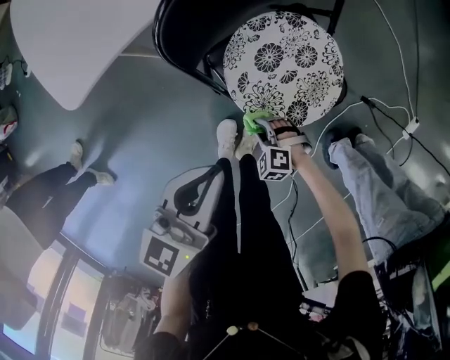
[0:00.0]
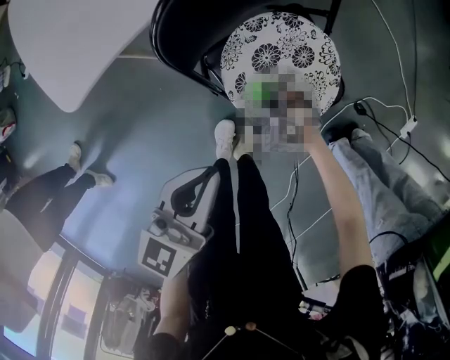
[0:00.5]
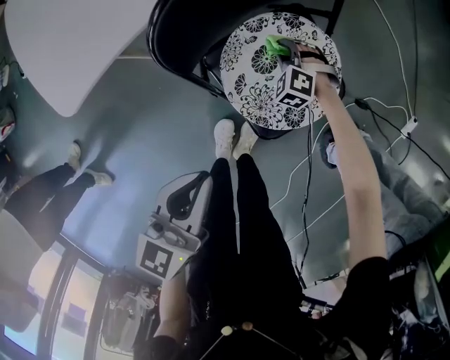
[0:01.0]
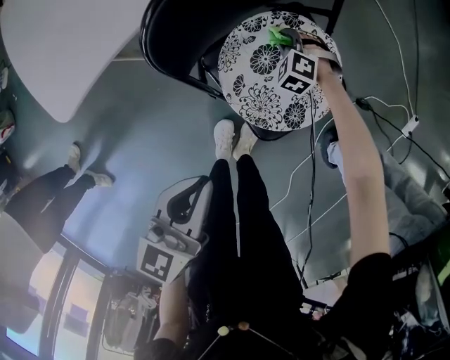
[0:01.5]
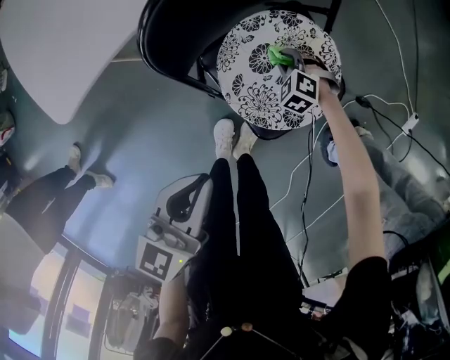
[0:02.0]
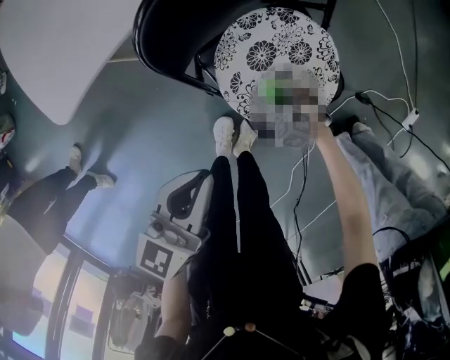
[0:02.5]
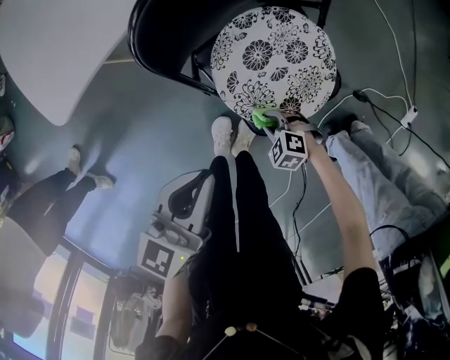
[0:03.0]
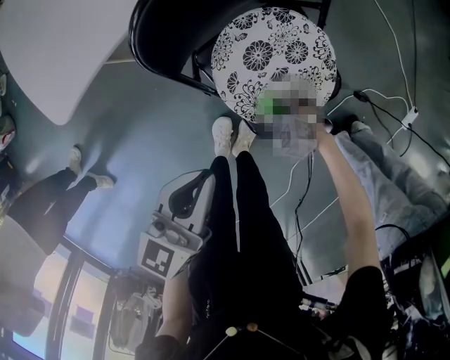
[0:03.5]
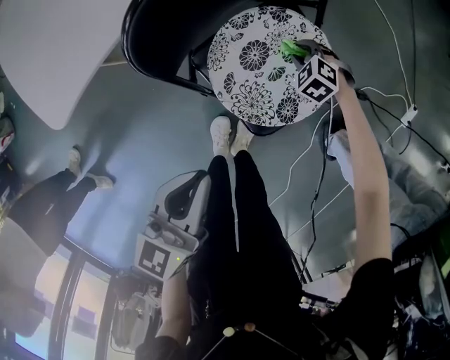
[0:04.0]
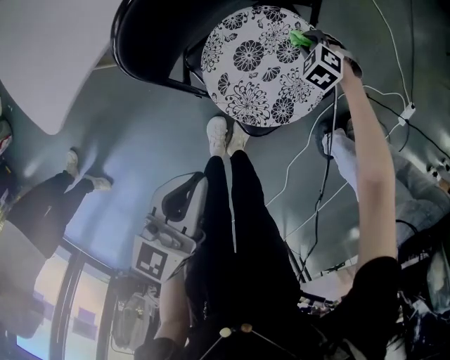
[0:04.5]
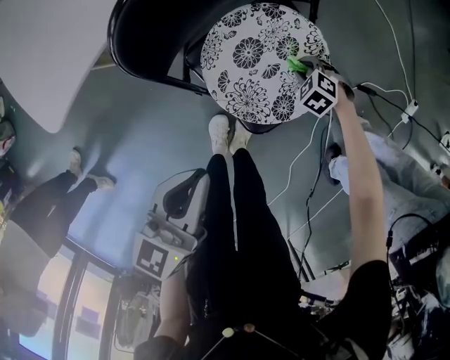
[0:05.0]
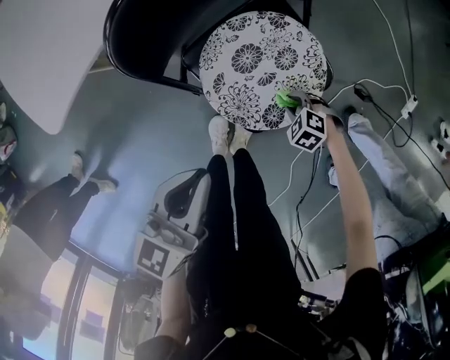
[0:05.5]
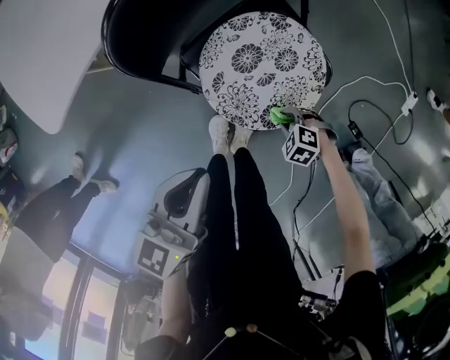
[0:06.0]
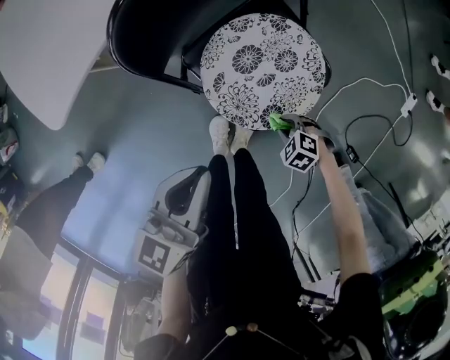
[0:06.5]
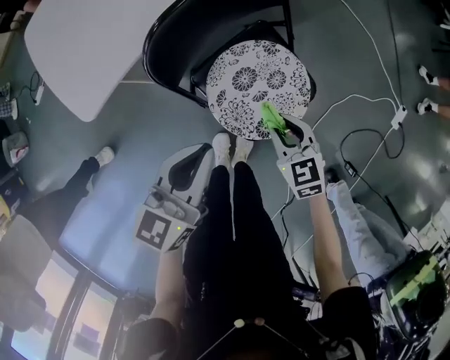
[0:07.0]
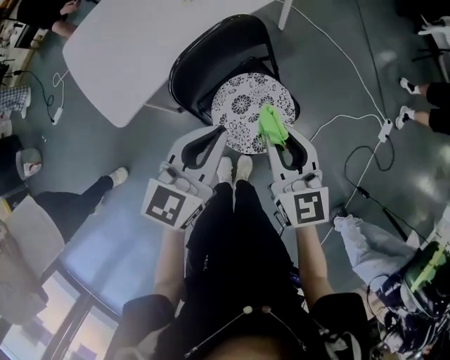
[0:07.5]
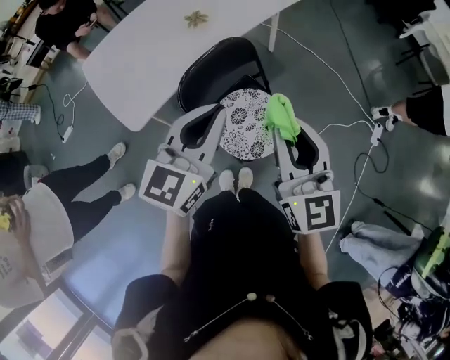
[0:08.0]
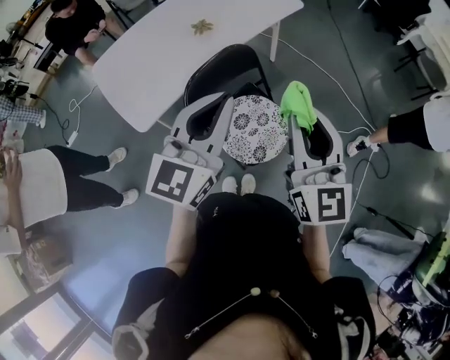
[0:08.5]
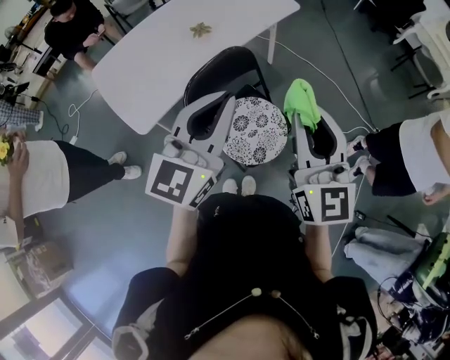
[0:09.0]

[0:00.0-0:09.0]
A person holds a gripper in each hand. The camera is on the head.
0:00.0 to 0:02.0: The right gripper heads forward, covering some 25 cm.
0:04.5 to 0:07.0: The right gripper is displaced upward by some 25 cm, and angles its fingers upward, by roughly 30 degrees. Meanwhile the left gripper moves upward, roughly 10 cm.
0:07.0 to 0:09.0: Both grippers move upward, some 40 cm. The right gripper tips its fingers upward by some 40 degrees; the left gripper rotates about 30 degrees.

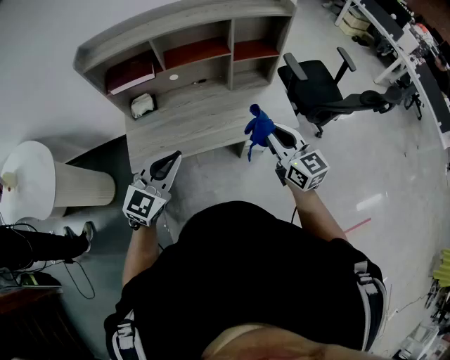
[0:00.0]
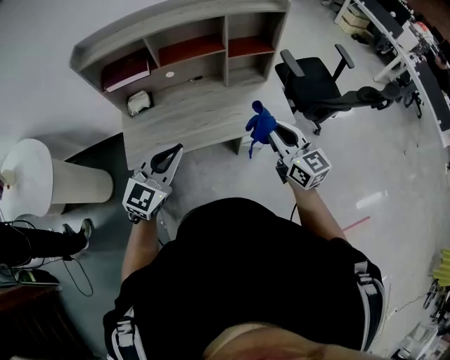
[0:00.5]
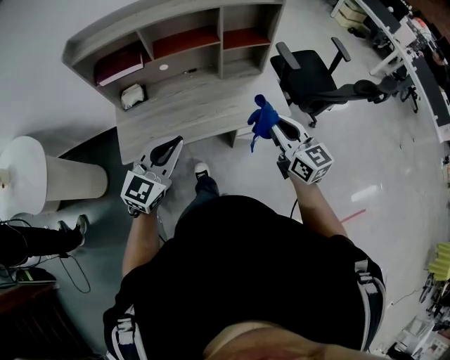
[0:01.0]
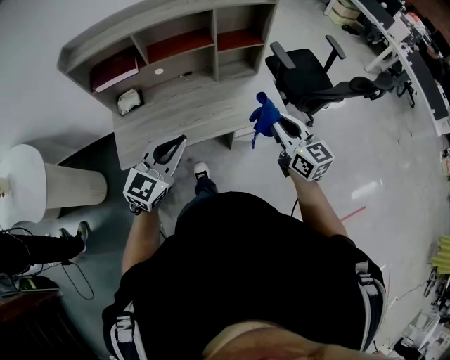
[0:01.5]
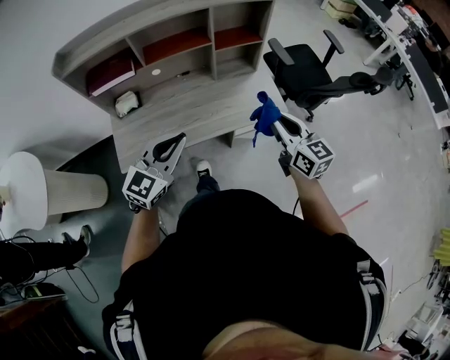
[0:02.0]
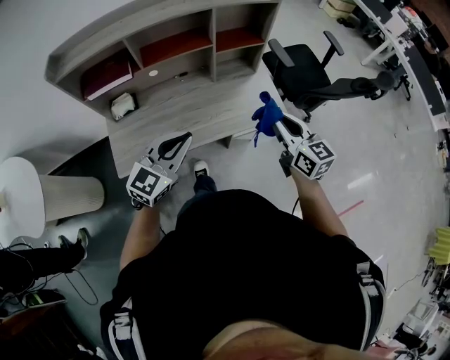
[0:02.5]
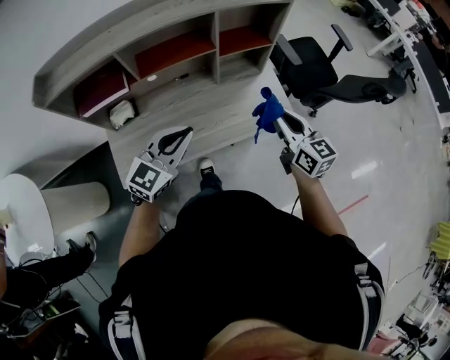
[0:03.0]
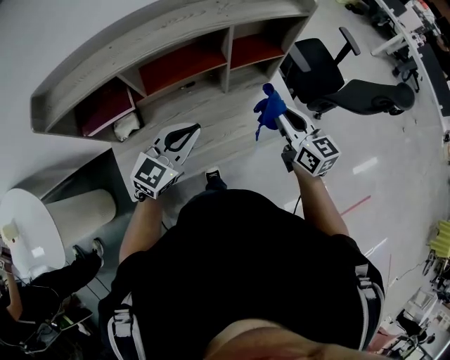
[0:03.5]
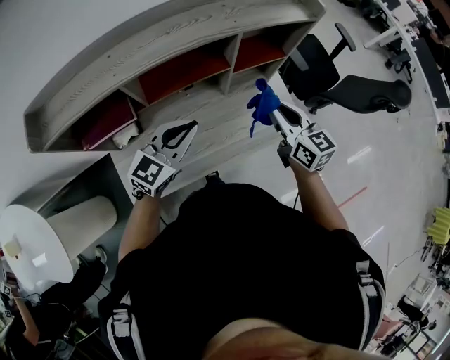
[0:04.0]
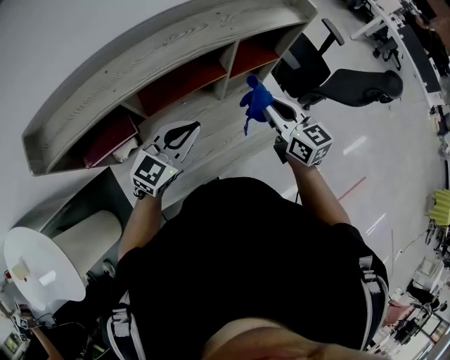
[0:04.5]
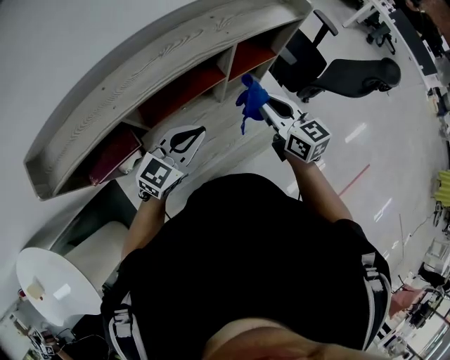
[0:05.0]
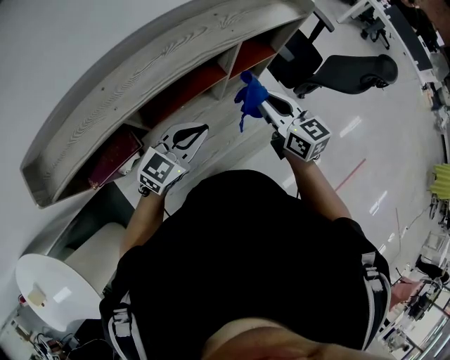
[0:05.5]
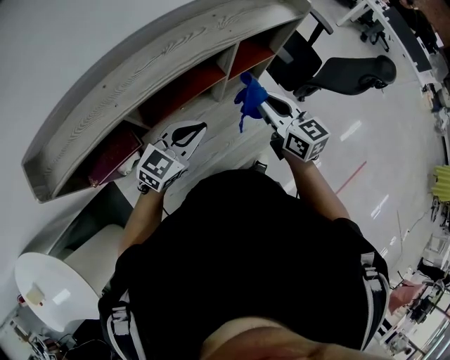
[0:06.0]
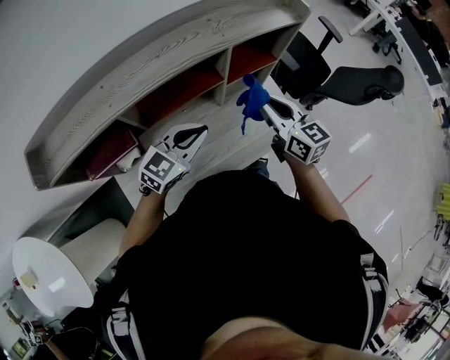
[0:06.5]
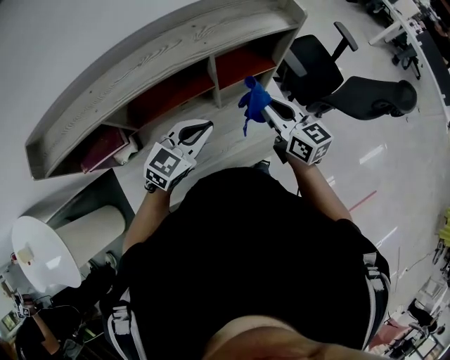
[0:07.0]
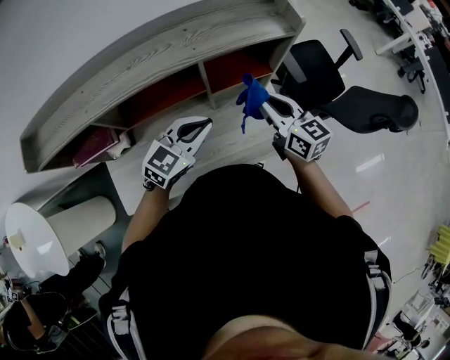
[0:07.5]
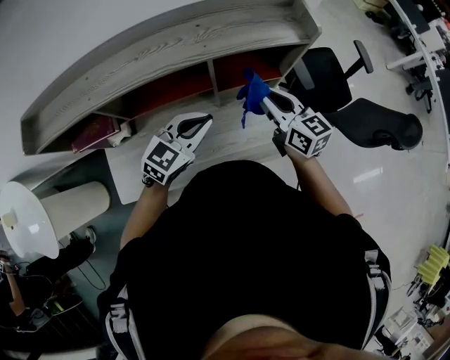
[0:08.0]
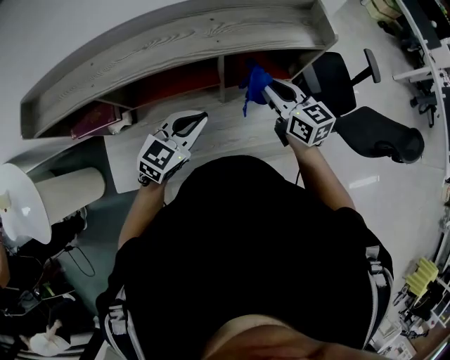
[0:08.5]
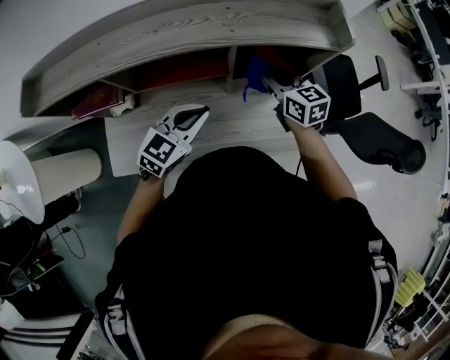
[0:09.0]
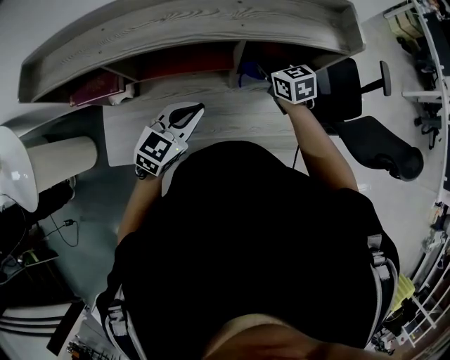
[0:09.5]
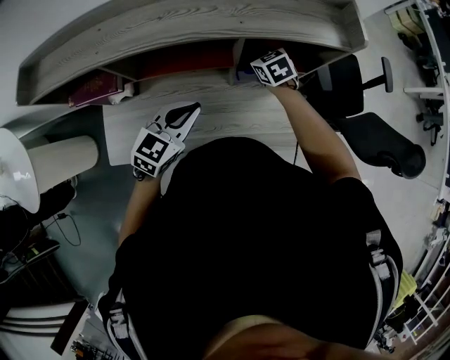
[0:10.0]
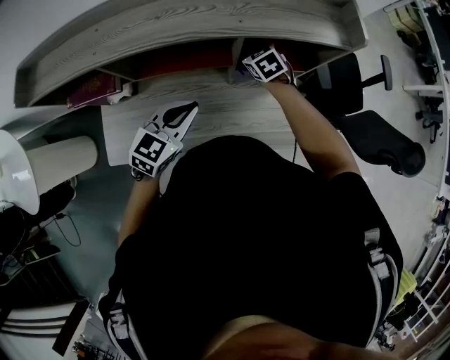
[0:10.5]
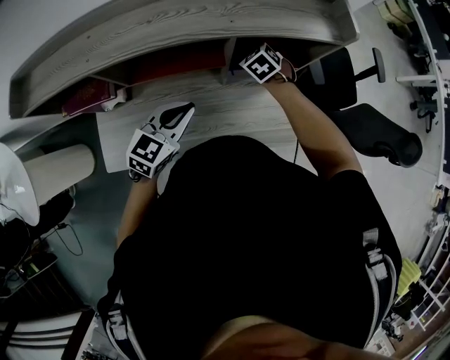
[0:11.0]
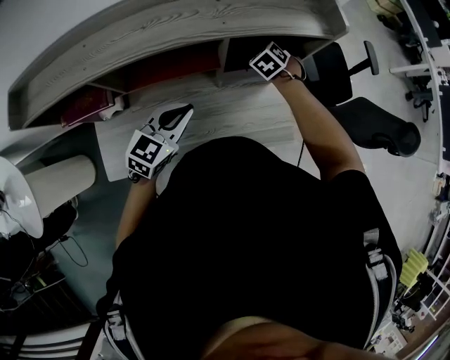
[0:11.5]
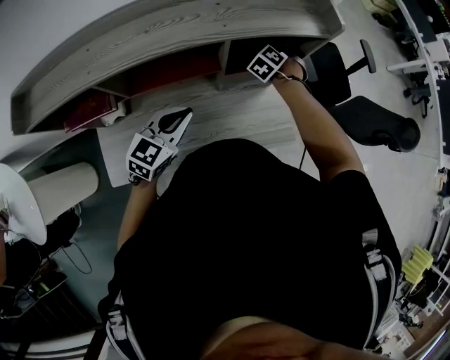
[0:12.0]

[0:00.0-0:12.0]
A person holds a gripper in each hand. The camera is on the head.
0:00.0 to 0:02.0: The two grippers go roughly 5 cm to the right.
0:02.0 to 0:04.0: The left gripper shifts some 25 cm forward, while the right gripper travels forward and to the left by roughly 25 cm.
0:04.0 to 0:06.0: The right gripper travels to the left by approximately 5 cm.
0:06.0 to 0:08.0: The left gripper travels to the right and forward by approximately 15 cm, and swivels roughly 20 degrees; the right gripper moves forward and to the right, approximately 15 cm, and turns by roughly 20 degrees.
0:08.0 to 0:10.0: The left gripper moves to the left, roughly 5 cm. Meanwhile the right gripper goes some 20 cm downward, forward and to the left, and tilts its fingers some 40 degrees downward.
0:10.0 to 0:12.0: The right gripper moves approximately 10 cm, and turns by roughly 50 degrees.

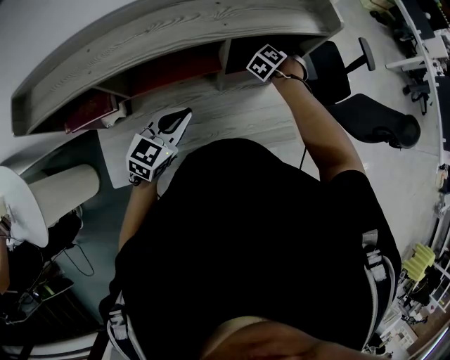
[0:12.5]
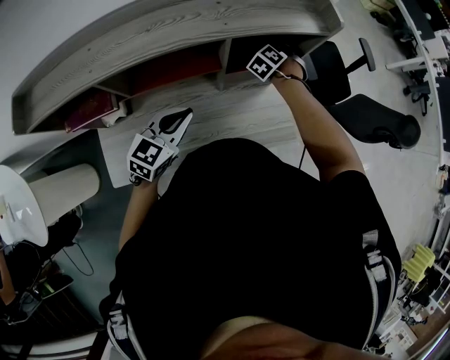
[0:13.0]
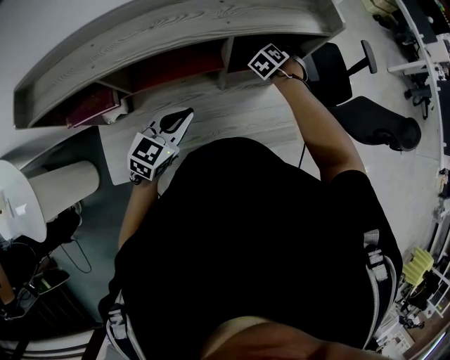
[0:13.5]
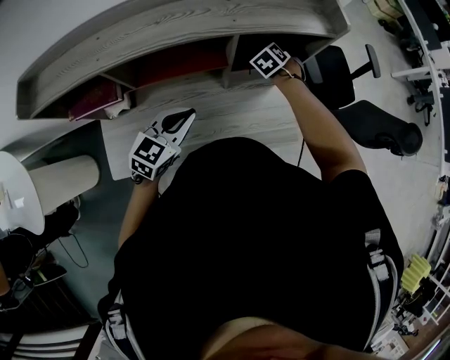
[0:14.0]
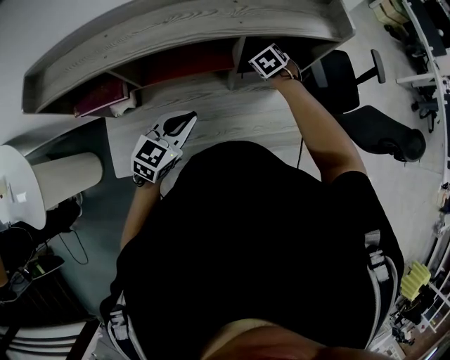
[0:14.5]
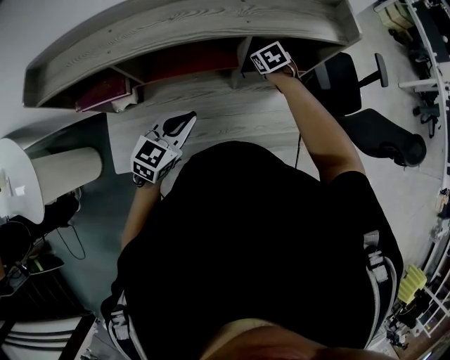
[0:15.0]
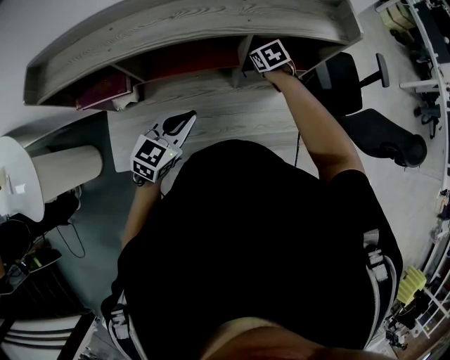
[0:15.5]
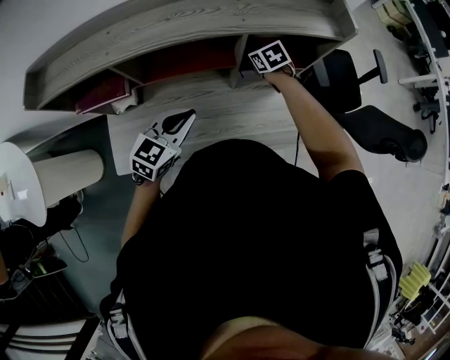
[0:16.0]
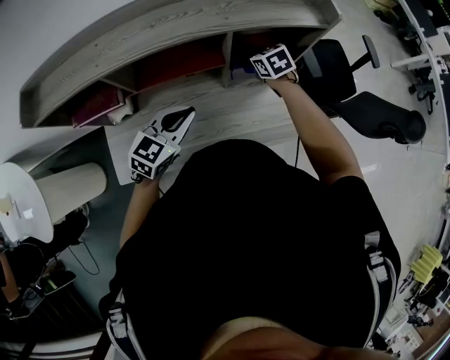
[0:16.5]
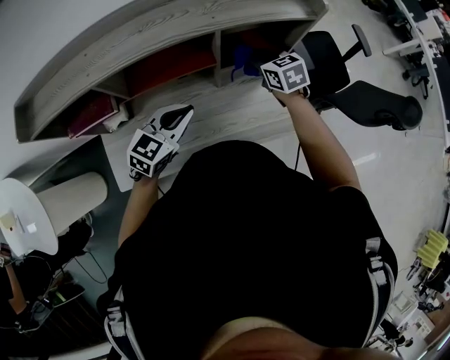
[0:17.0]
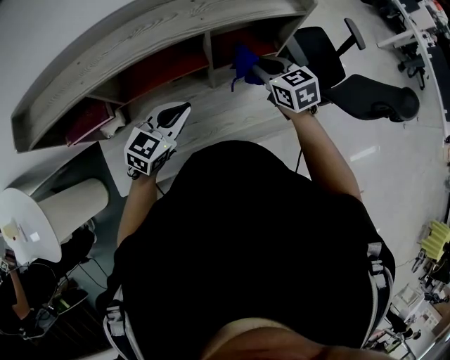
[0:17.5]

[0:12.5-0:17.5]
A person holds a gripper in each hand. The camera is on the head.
0:12.5 to 0:15.0: The right gripper moves roughly 10 cm, and rotates some 40 degrees.
0:15.0 to 0:17.5: The right gripper heads upward, backward and to the right, covering roughly 20 cm, and turns by about 30 degrees. The left gripper changes place by some 5 cm.

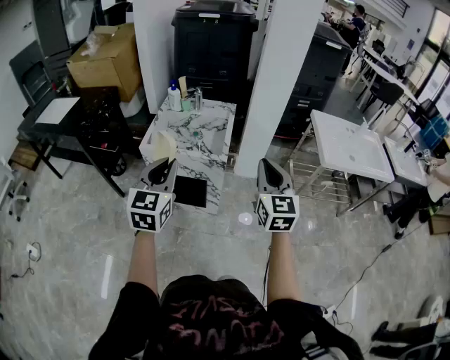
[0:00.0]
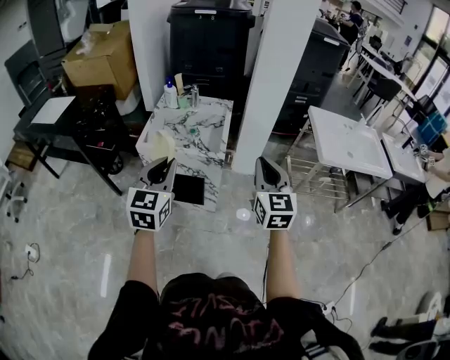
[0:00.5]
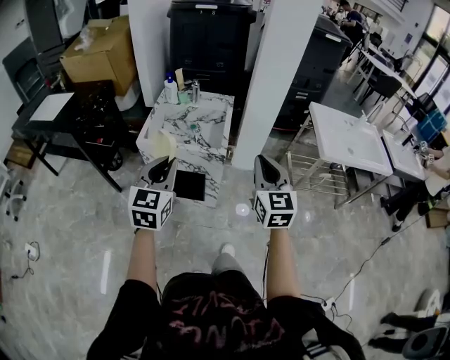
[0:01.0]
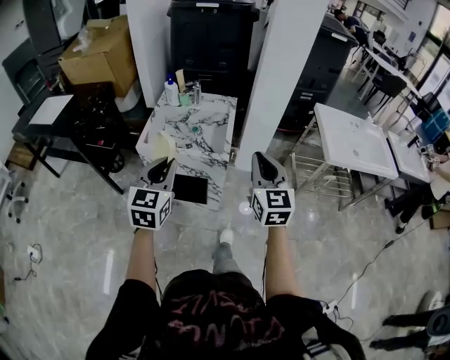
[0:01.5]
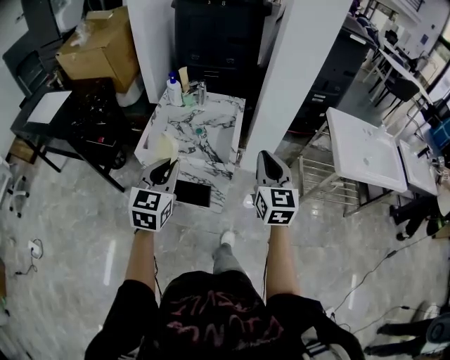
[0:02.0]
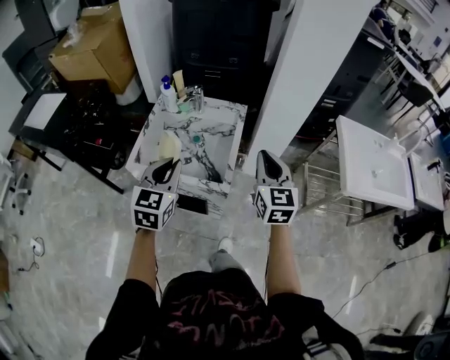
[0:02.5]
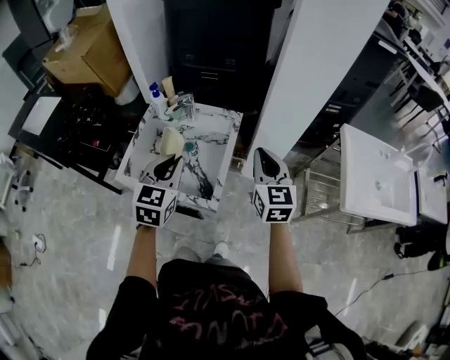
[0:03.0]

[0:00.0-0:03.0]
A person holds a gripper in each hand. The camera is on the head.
0:00.0 to 0:01.5: The two grippers go some 5 cm forward.
0:01.5 to 0:03.0: Both grippers travel together forward, roughly 30 cm.
